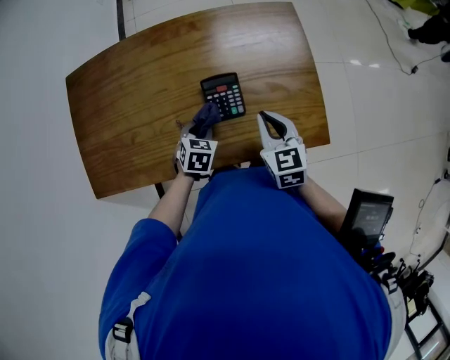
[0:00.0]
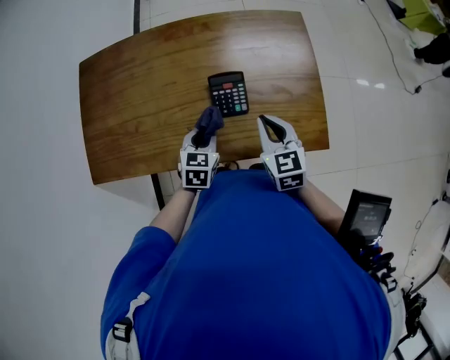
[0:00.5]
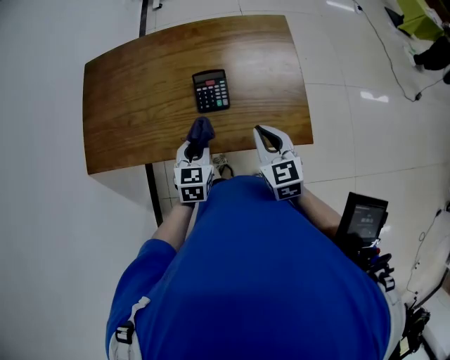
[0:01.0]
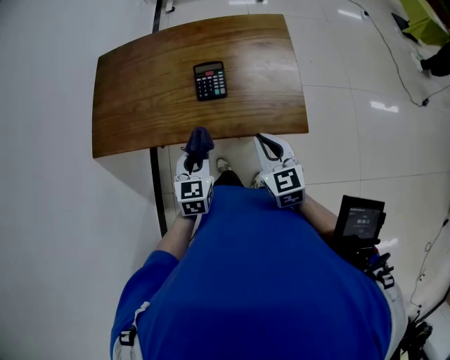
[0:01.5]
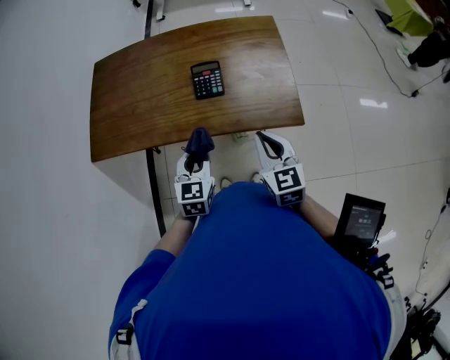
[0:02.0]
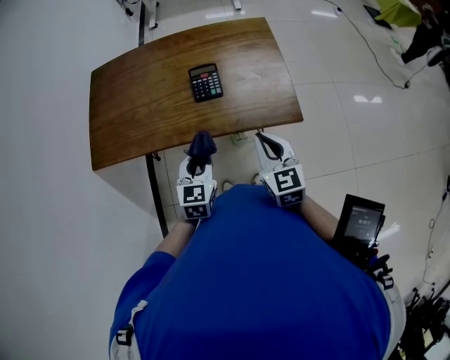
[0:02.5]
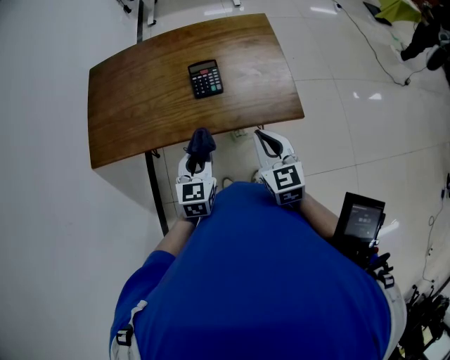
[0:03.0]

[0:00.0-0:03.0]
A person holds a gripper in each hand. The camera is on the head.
0:00.0 to 0:01.5: The left gripper goes roughly 25 cm backward and upward, and turns by about 30 degrees; the right gripper heads backward, covering about 20 cm.
0:01.5 to 0:03.0: There are only small adjustments of the grippers.

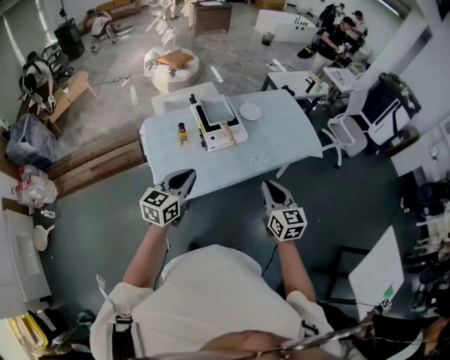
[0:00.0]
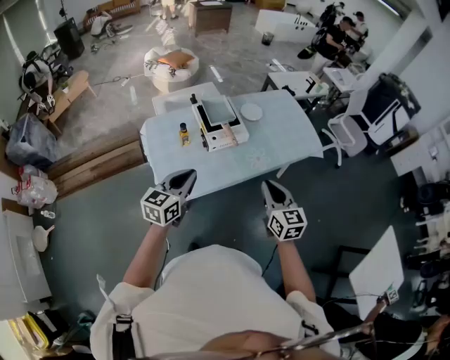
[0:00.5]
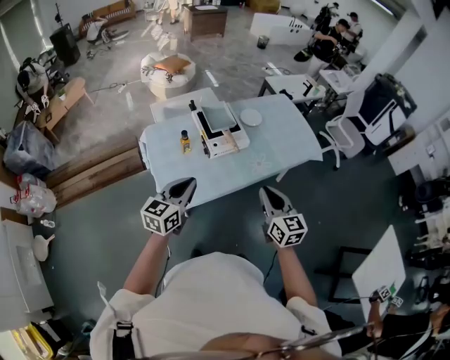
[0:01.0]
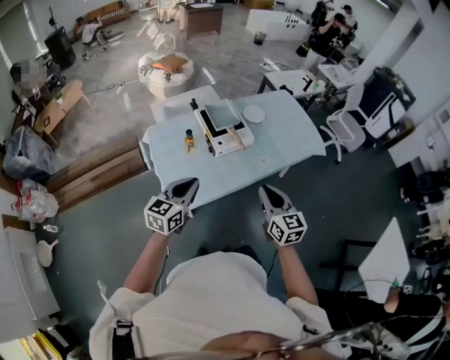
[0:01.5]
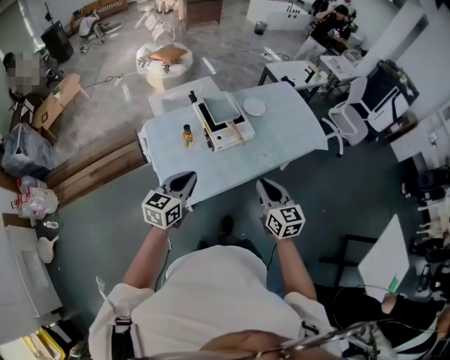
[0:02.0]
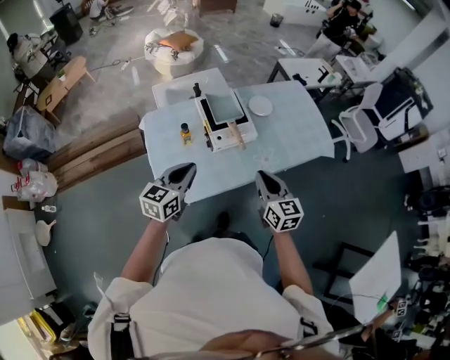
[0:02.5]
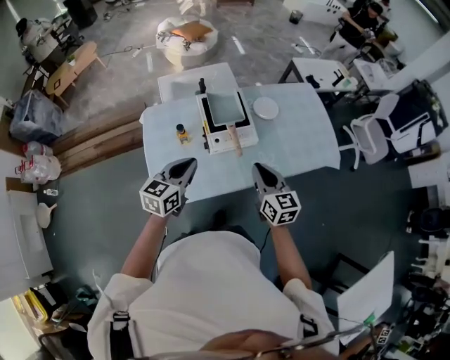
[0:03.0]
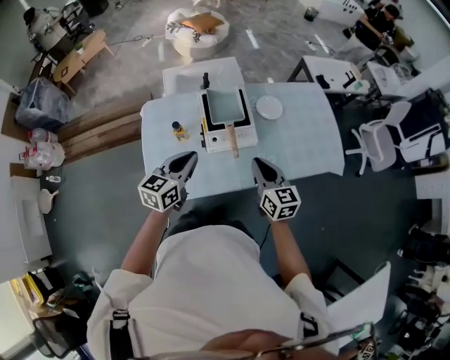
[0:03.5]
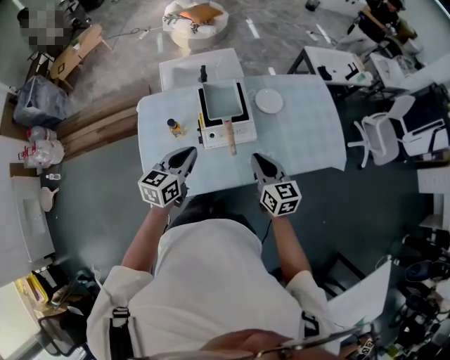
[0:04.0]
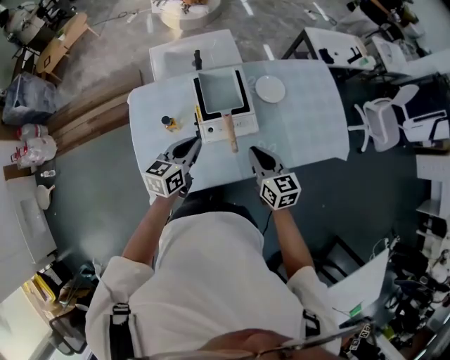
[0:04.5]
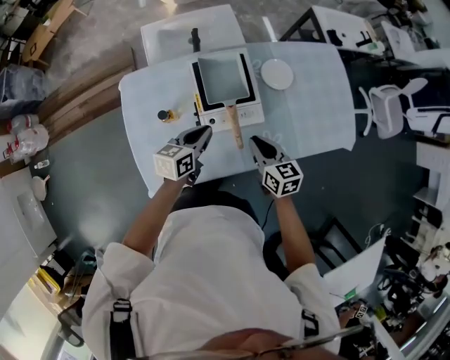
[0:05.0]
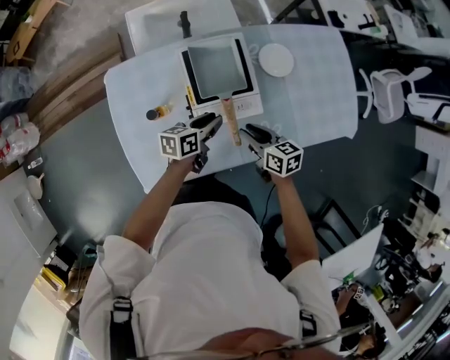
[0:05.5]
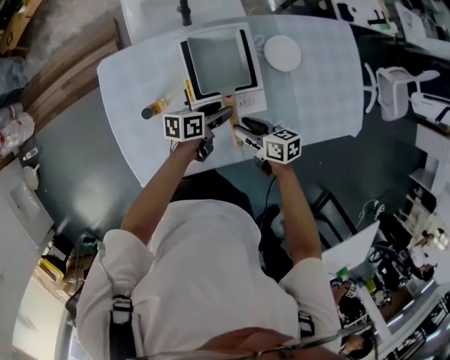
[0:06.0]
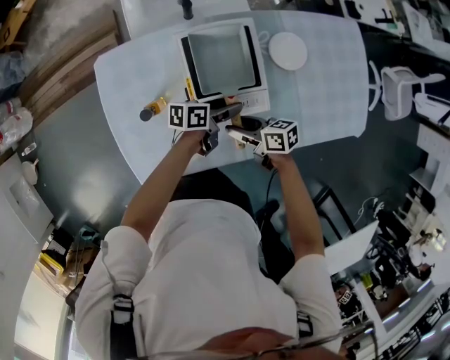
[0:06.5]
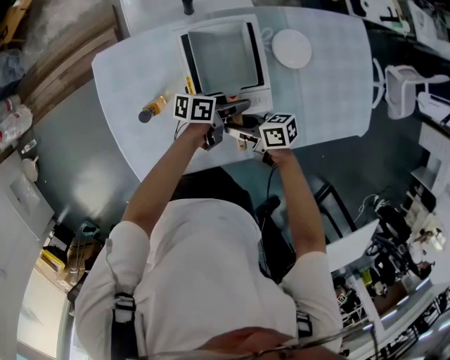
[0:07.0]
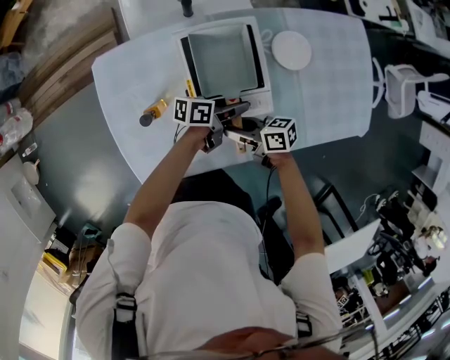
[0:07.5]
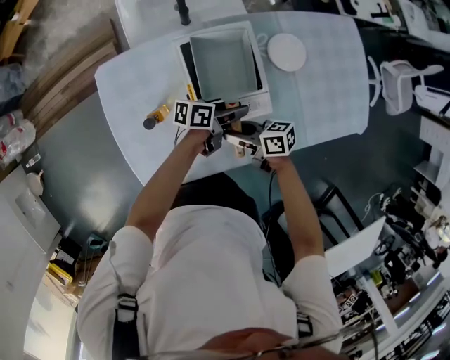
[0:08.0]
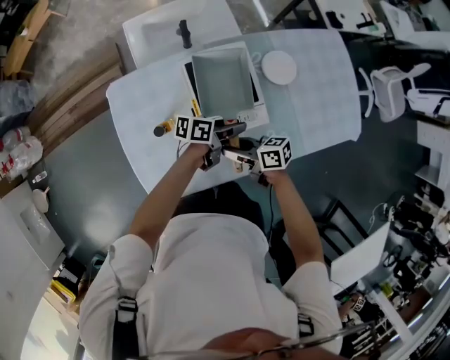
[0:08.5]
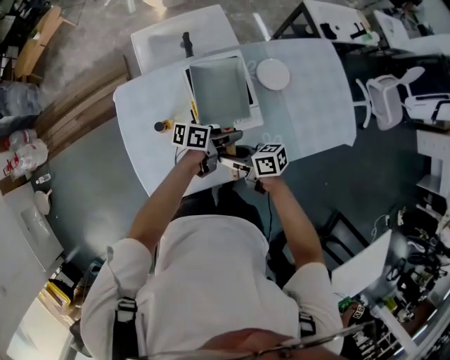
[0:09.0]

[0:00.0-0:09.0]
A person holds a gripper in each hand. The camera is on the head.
0:00.0 to 0:02.0: The grippers both shift to the left by approximately 5 cm.
0:02.0 to 0:04.5: The right gripper heads forward, covering some 25 cm, and changes its angle by some 20 degrees. The left gripper heads forward and to the right, covering approximately 25 cm, and turns by some 20 degrees.
0:04.5 to 0:07.0: The two grippers go approximately 20 cm downward. The left gripper changes its angle by approximately 50 degrees, and opens; the right gripper rotates roughly 60 degrees, and opens up.
0:07.0 to 0:09.0: Both grippers move upward, approximately 10 cm.

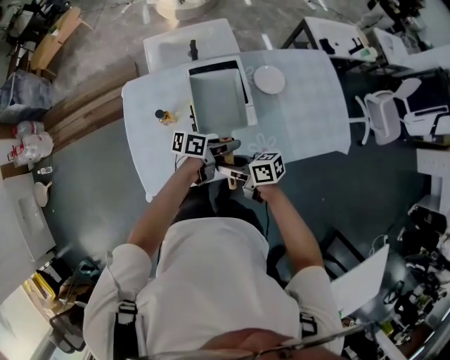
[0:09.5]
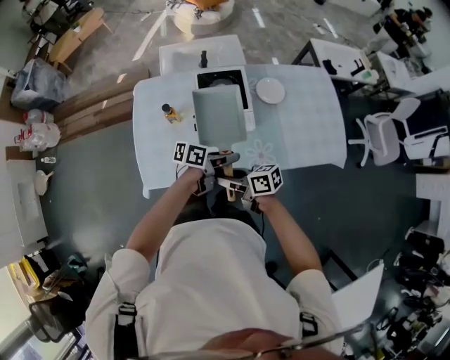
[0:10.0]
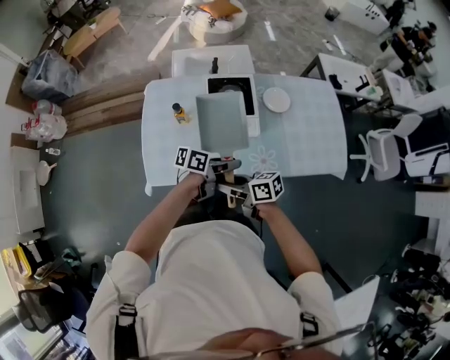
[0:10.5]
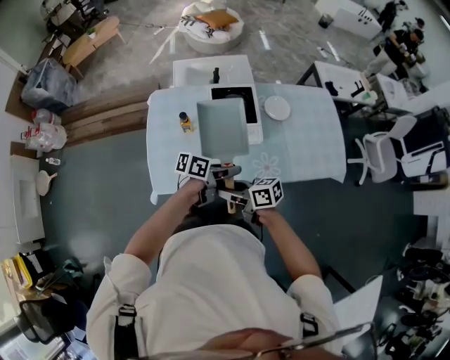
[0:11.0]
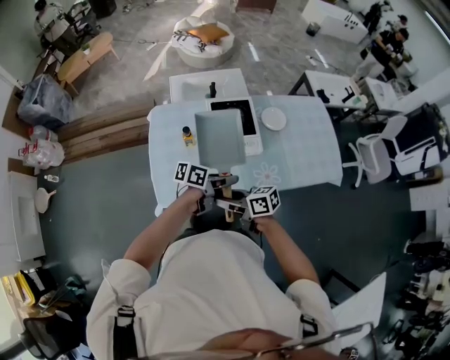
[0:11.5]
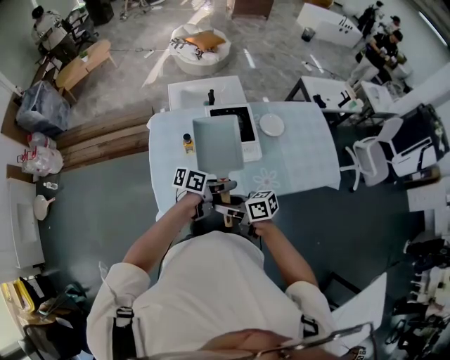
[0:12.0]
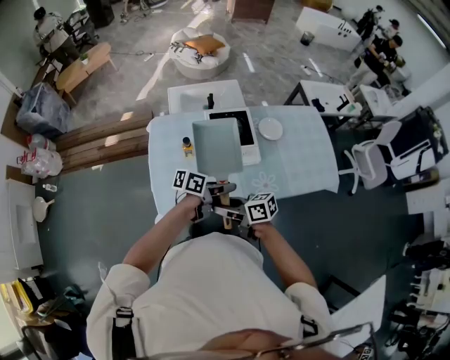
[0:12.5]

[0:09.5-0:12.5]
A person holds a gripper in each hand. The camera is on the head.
0:09.5 to 0:11.0: The left gripper ends up about 10 cm from where it was; the right gripper moves roughly 10 cm.
0:11.0 to 0:12.5: The grippers stay close to where they were, moving slightly.

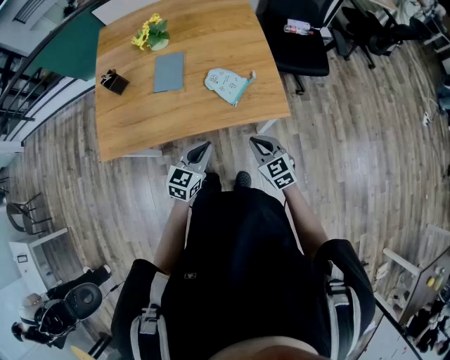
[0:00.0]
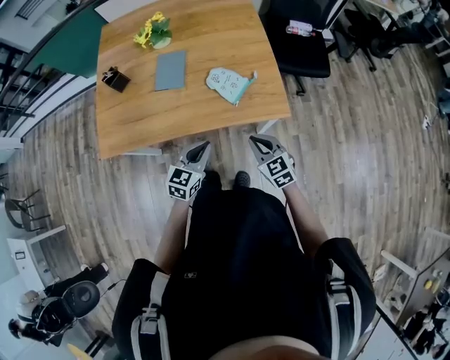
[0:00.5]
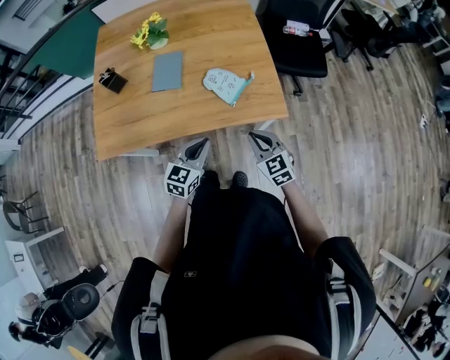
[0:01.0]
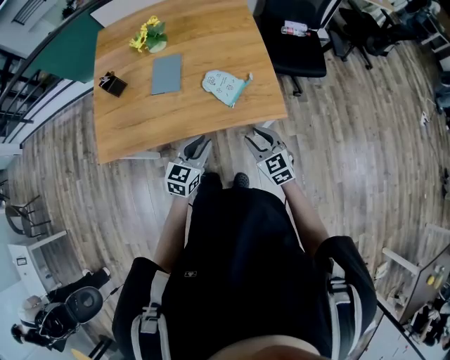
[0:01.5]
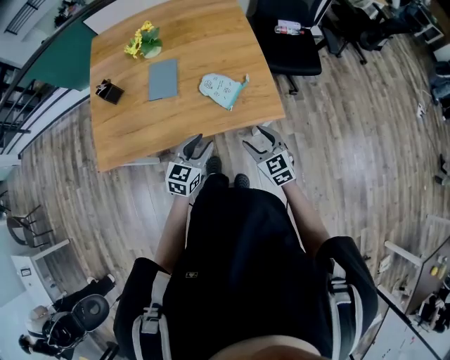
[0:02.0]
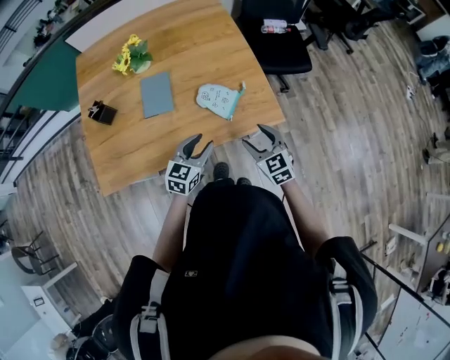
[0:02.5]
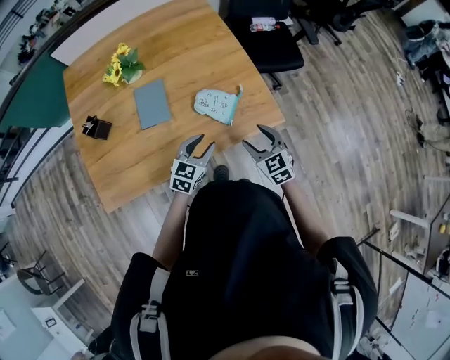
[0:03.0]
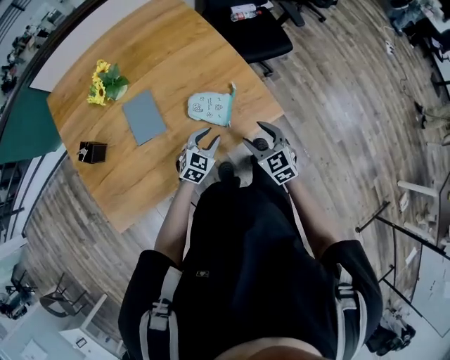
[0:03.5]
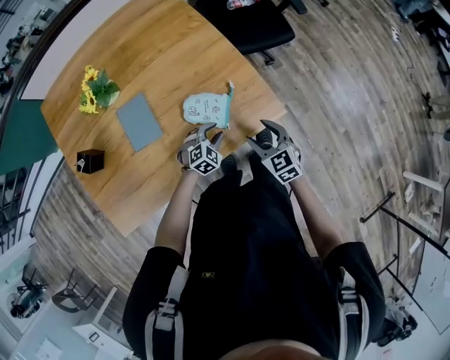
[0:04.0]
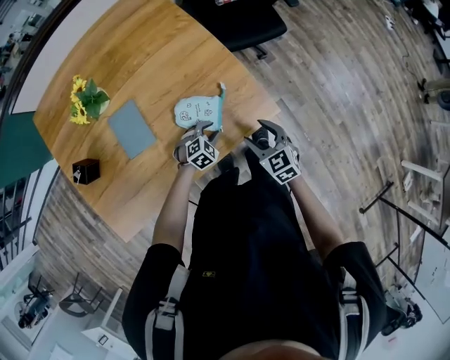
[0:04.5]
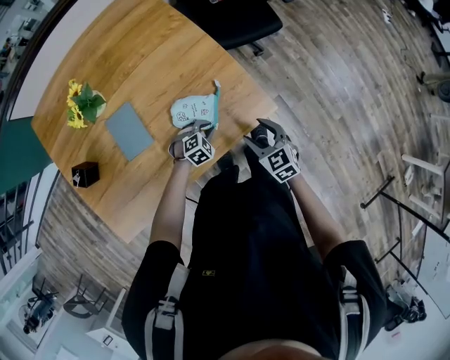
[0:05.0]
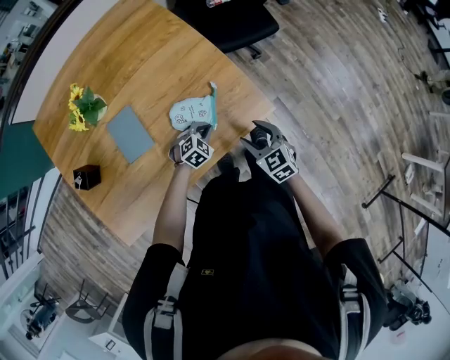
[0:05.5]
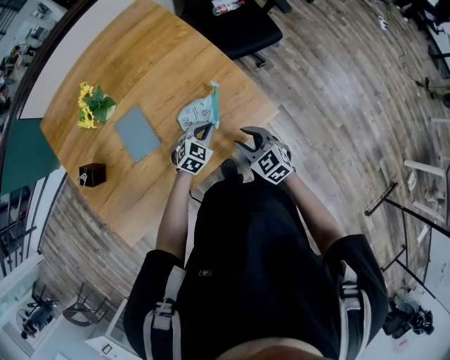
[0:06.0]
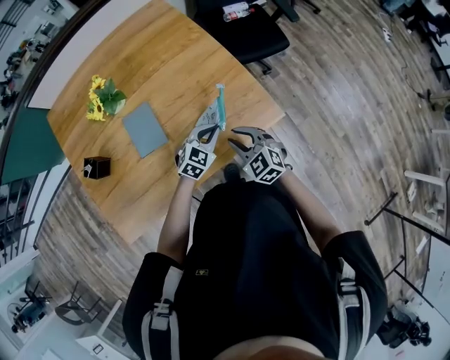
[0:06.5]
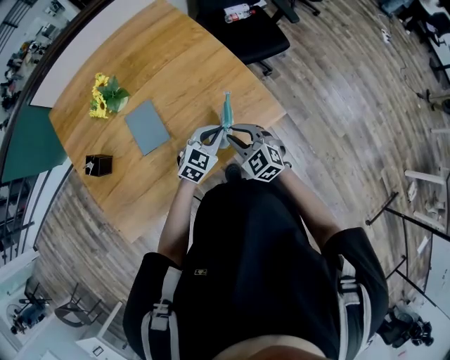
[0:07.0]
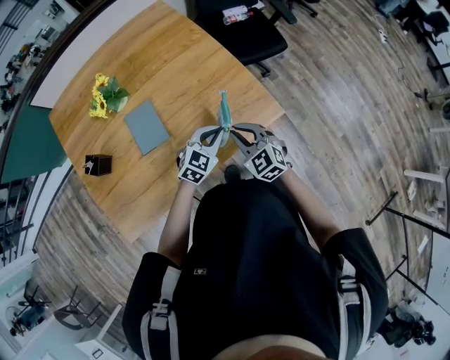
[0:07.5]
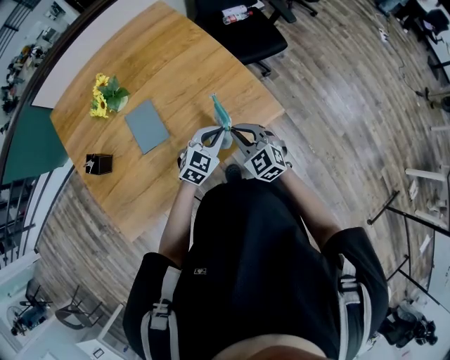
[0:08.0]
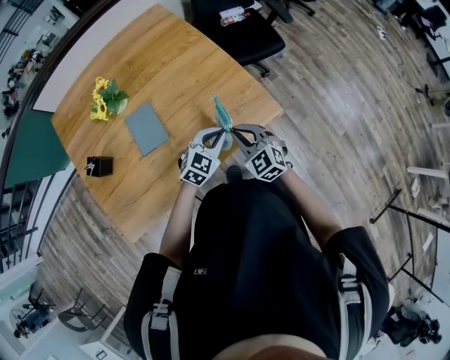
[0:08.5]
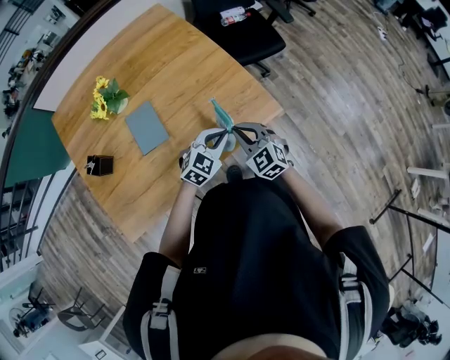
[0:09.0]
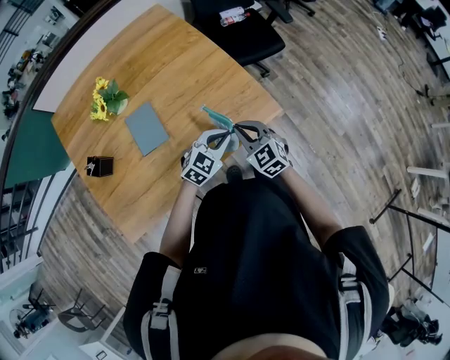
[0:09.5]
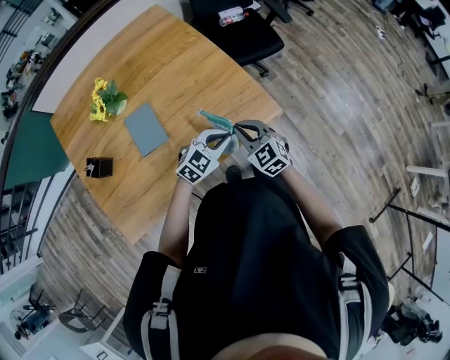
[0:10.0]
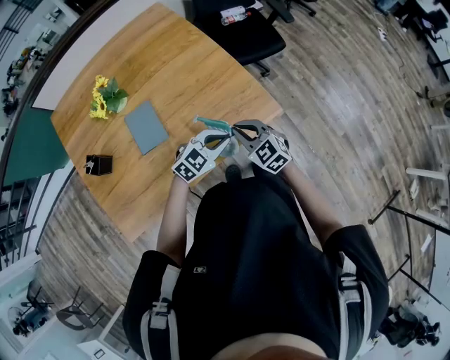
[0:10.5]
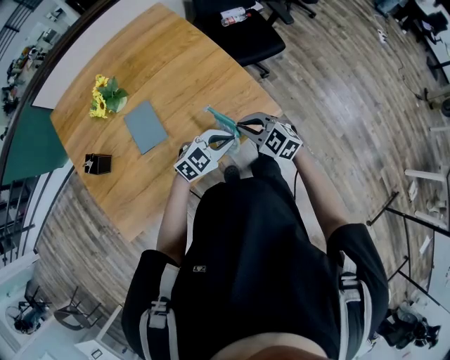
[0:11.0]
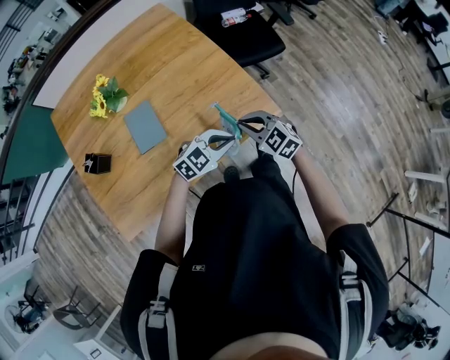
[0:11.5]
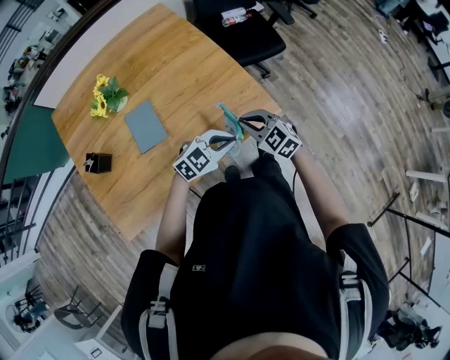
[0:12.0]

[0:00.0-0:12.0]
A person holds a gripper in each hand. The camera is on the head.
0:00.0 to 0:02.0: The left gripper opens. Meanwhile the right gripper opens its fingers.
0:02.0 to 0:04.0: The right gripper goes about 15 cm forward and downward, and changes its angle by some 20 degrees, while the left gripper travels downward and forward by some 25 cm, and swivels roughly 50 degrees.
0:04.0 to 0:06.0: The right gripper closes up. The left gripper goes about 5 cm upward, and closes.
0:06.0 to 0:08.0: The left gripper goes roughly 10 cm upward and backward. Meanwhile the right gripper shifts approximately 5 cm to the left, and closes its fingers.
0:08.0 to 0:10.0: The grippers move only a little.
0:10.0 to 0:12.0: The grippers stay close to where they were, moving slightly.
